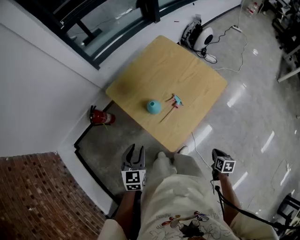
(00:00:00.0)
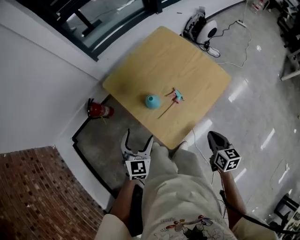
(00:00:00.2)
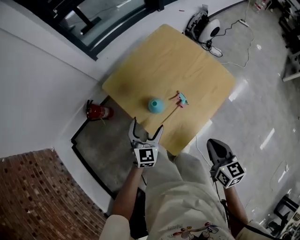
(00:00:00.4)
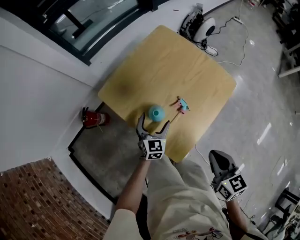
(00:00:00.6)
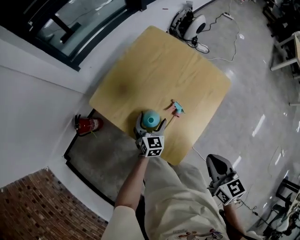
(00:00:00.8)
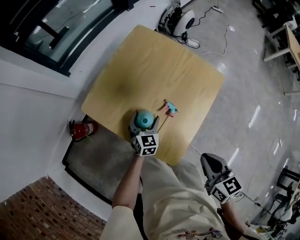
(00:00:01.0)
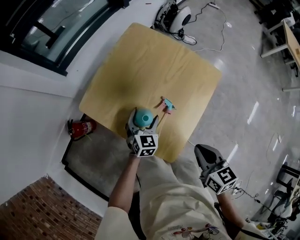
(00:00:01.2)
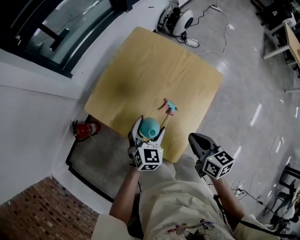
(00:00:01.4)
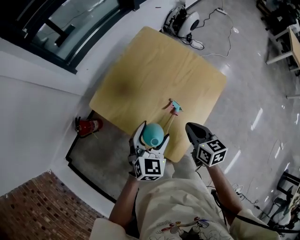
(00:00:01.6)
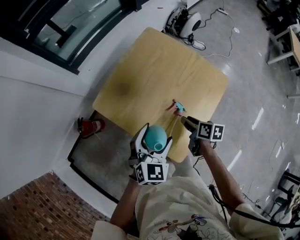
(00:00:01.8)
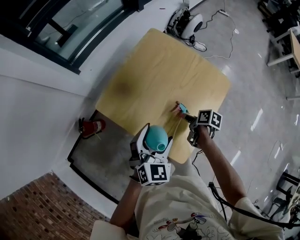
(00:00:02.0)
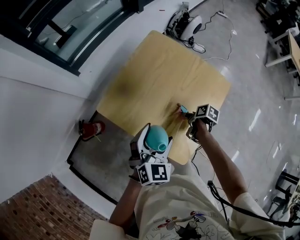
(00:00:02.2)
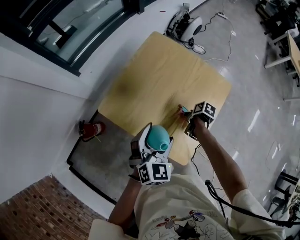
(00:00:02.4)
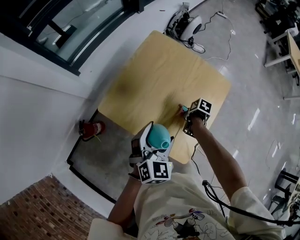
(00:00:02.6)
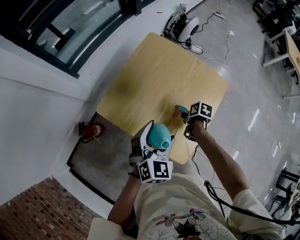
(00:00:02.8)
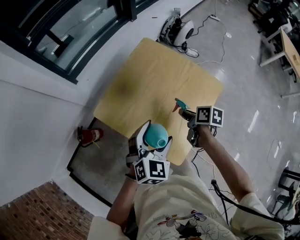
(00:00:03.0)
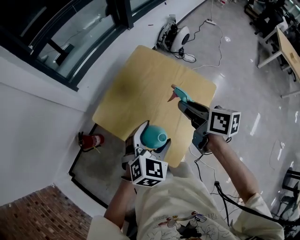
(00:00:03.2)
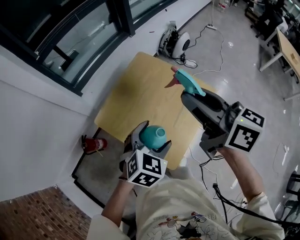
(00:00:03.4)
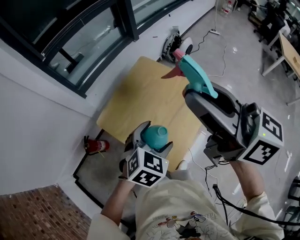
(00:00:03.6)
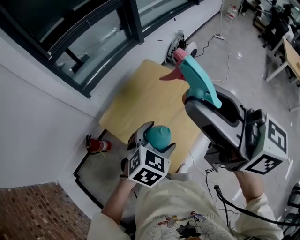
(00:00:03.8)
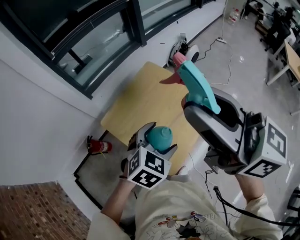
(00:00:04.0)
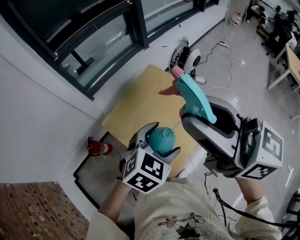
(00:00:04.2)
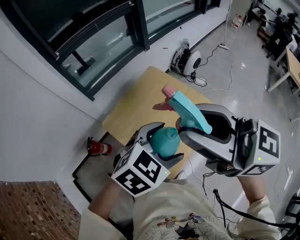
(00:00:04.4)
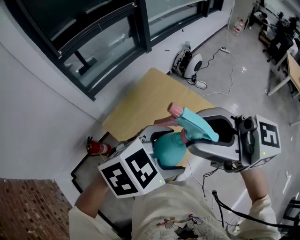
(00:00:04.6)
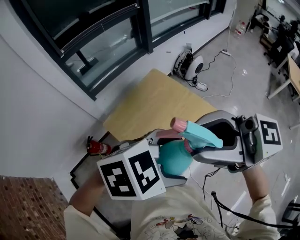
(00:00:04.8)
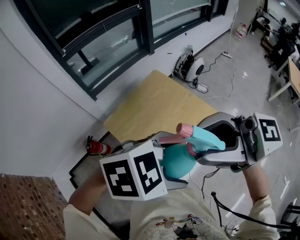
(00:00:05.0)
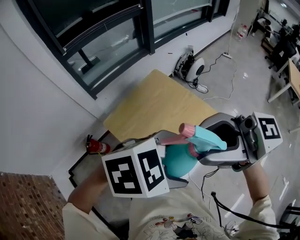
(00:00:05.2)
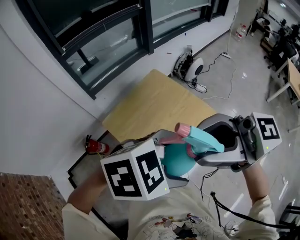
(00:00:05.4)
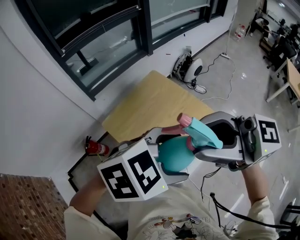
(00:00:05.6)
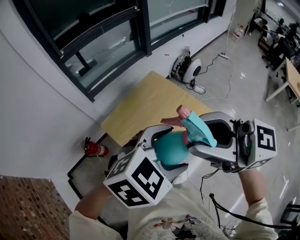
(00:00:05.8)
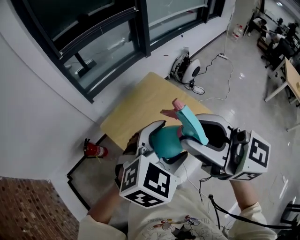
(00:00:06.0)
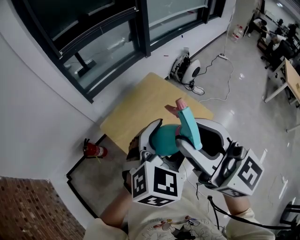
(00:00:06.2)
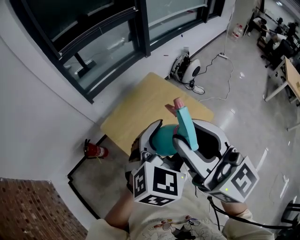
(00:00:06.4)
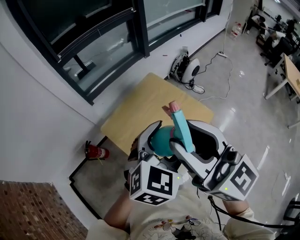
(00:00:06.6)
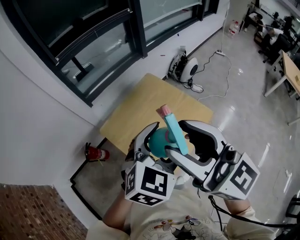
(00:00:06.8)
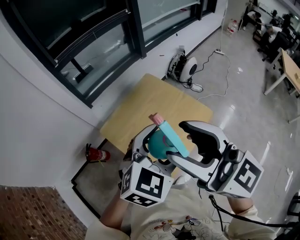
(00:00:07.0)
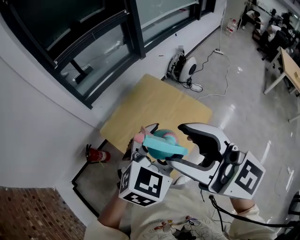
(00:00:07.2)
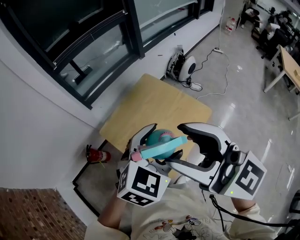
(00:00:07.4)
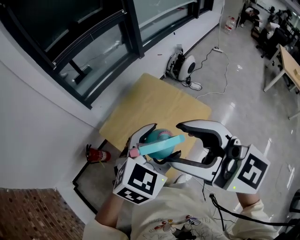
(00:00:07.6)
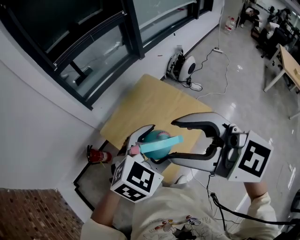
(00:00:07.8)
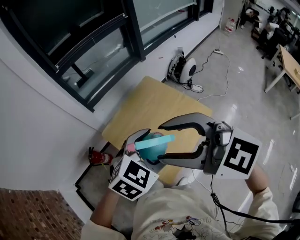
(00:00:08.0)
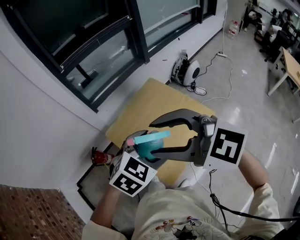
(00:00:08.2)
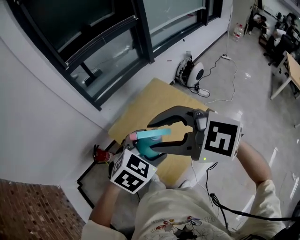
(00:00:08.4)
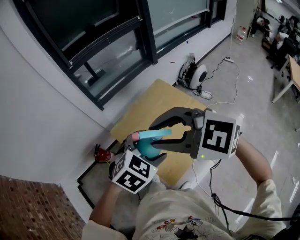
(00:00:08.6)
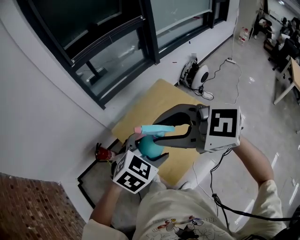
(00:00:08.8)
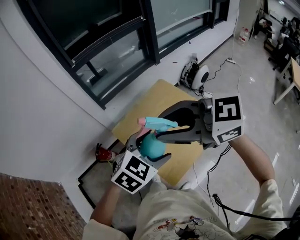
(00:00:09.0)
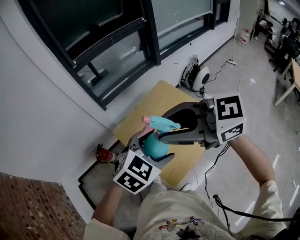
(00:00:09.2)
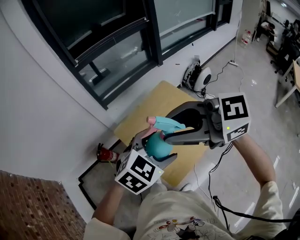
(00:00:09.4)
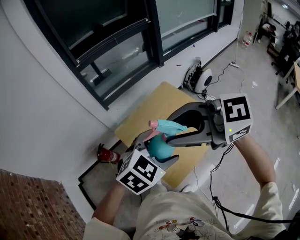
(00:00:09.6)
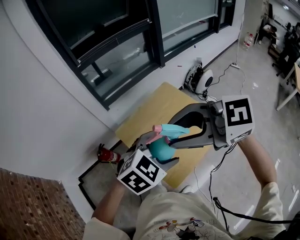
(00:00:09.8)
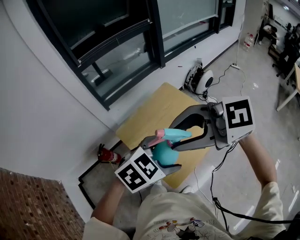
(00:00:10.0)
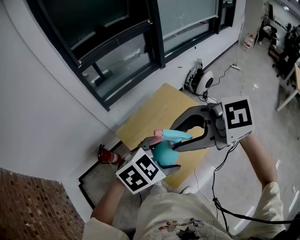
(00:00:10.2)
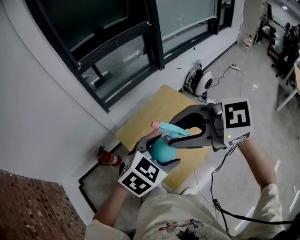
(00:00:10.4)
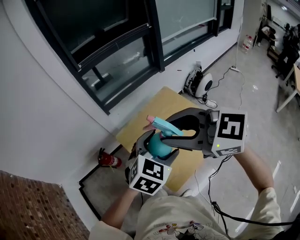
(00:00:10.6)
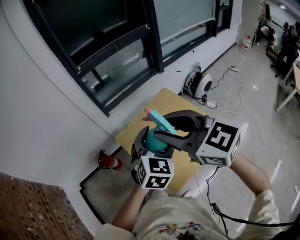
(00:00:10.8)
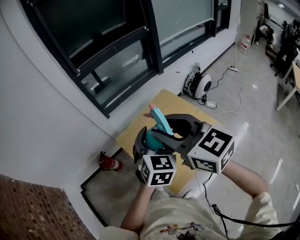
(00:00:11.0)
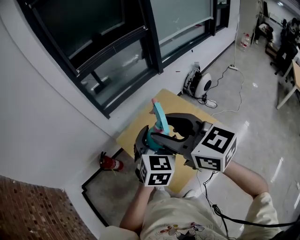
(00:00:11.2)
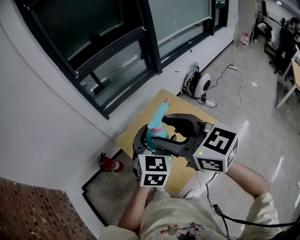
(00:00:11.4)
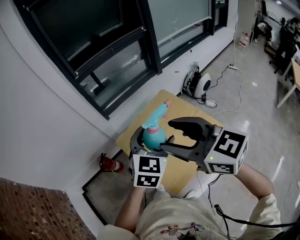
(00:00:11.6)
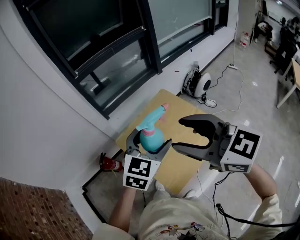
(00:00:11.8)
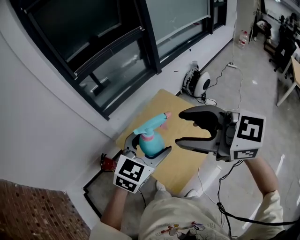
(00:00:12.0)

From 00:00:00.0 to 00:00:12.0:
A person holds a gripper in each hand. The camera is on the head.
From 00:00:00.0 to 00:00:01.6: The right gripper goes some 35 cm forward and to the left, and changes its angle by about 20 degrees. Meanwhile the left gripper shifts about 20 cm forward and to the right, turns by some 30 degrees, and opens its fingers.
From 00:00:01.6 to 00:00:03.0: The right gripper reaches roughly 15 cm downward, then returns, rotates roughly 30 degrees, and opens, while the left gripper moves upward, approximately 5 cm.
From 00:00:03.0 to 00:00:04.4: The left gripper goes approximately 25 cm upward and to the right, and swivels approximately 20 degrees. The right gripper is displaced upward by some 50 cm, and angles its fingers upward, by roughly 60 degrees.
From 00:00:06.0 to 00:00:07.6: The right gripper opens its fingers.
From 00:00:07.6 to 00:00:09.0: The left gripper ends up some 5 cm from where it was. The right gripper changes place by roughly 5 cm, swivels about 40 degrees, and closes.
From 00:00:09.0 to 00:00:10.4: There are only small adjustments of the grippers.
From 00:00:10.4 to 00:00:12.0: The right gripper shifts by about 5 cm, rotates roughly 30 degrees, and opens its fingers. The left gripper moves about 5 cm.

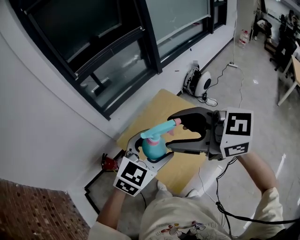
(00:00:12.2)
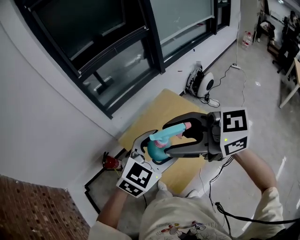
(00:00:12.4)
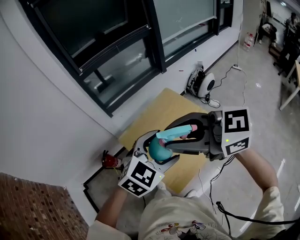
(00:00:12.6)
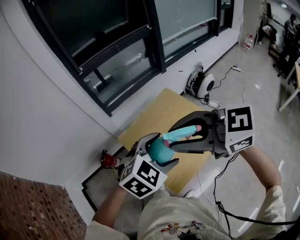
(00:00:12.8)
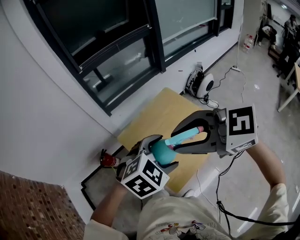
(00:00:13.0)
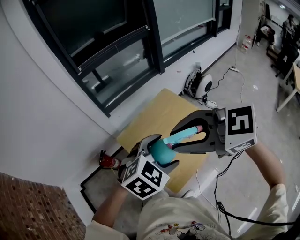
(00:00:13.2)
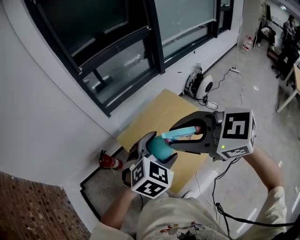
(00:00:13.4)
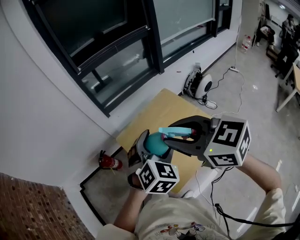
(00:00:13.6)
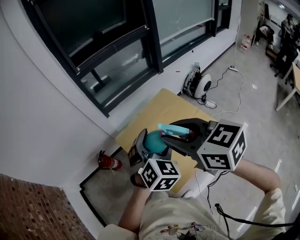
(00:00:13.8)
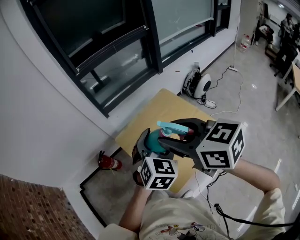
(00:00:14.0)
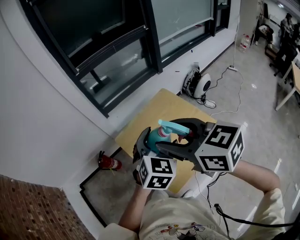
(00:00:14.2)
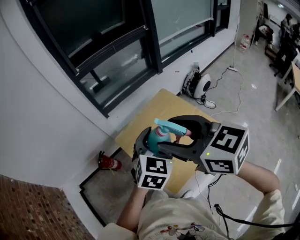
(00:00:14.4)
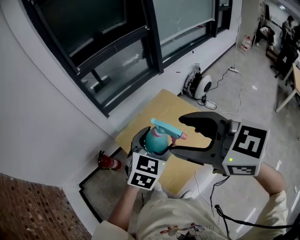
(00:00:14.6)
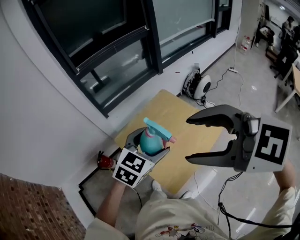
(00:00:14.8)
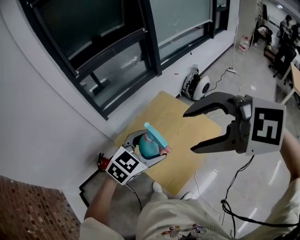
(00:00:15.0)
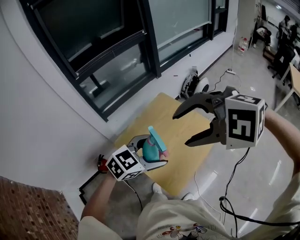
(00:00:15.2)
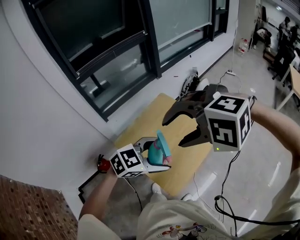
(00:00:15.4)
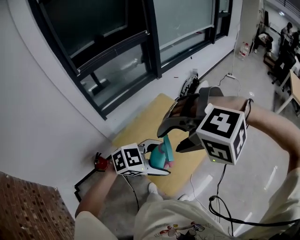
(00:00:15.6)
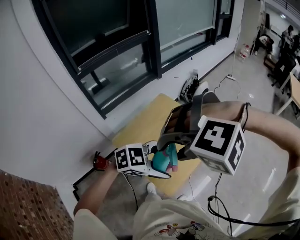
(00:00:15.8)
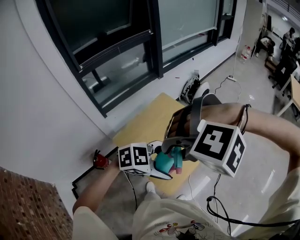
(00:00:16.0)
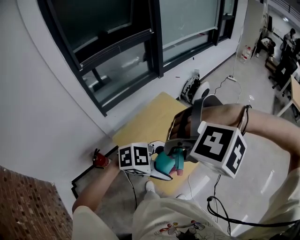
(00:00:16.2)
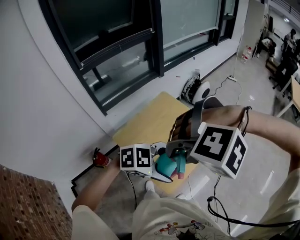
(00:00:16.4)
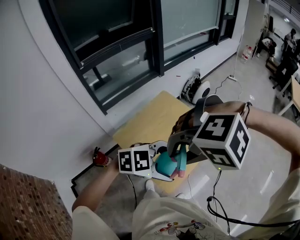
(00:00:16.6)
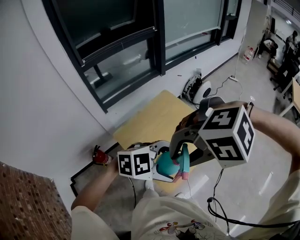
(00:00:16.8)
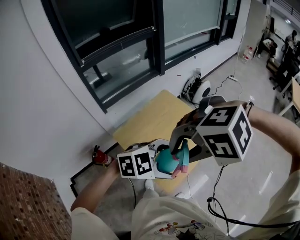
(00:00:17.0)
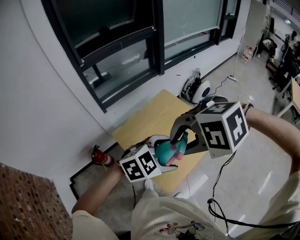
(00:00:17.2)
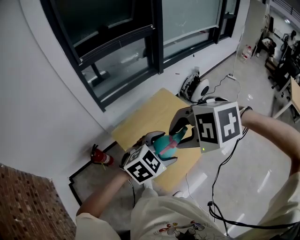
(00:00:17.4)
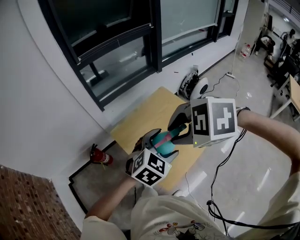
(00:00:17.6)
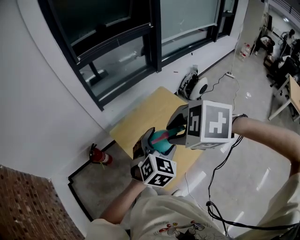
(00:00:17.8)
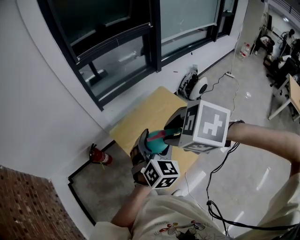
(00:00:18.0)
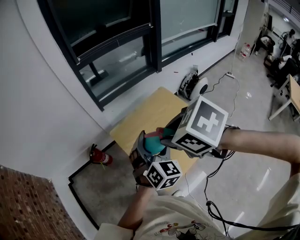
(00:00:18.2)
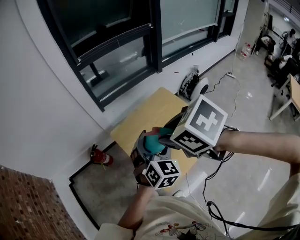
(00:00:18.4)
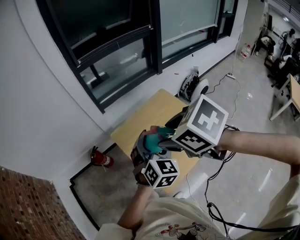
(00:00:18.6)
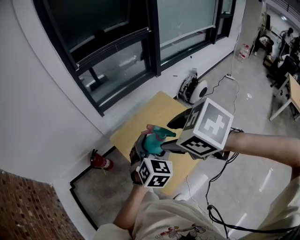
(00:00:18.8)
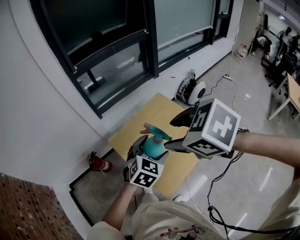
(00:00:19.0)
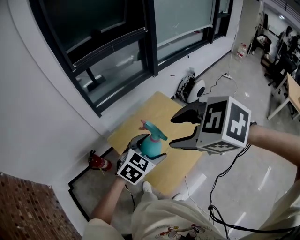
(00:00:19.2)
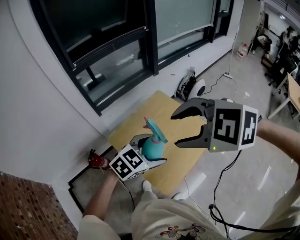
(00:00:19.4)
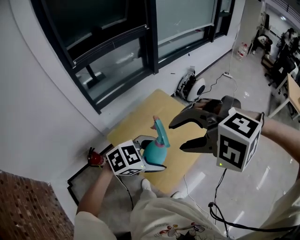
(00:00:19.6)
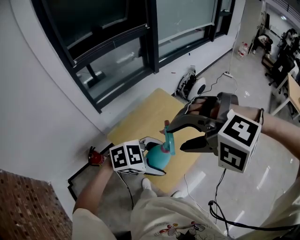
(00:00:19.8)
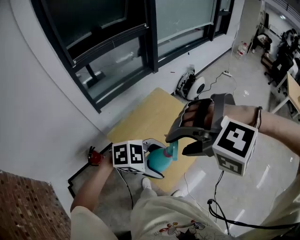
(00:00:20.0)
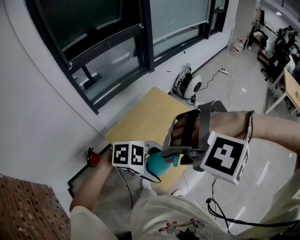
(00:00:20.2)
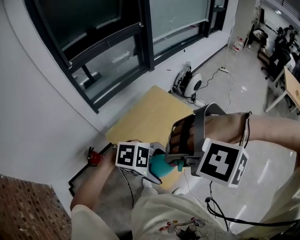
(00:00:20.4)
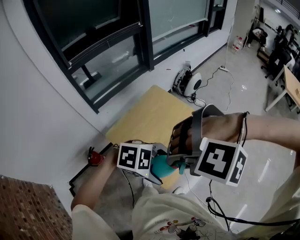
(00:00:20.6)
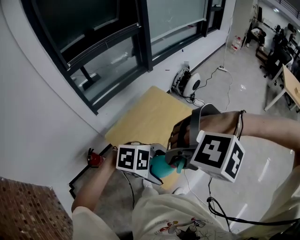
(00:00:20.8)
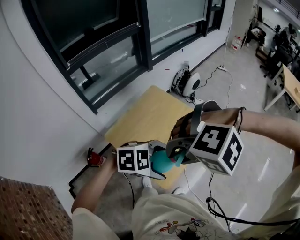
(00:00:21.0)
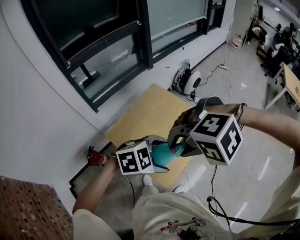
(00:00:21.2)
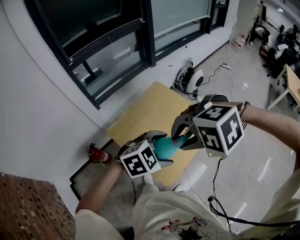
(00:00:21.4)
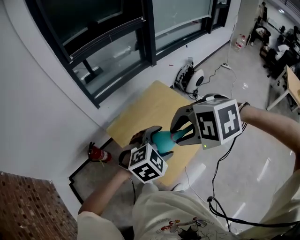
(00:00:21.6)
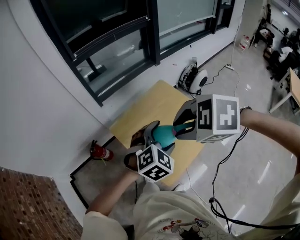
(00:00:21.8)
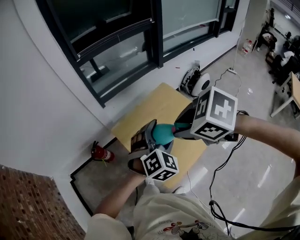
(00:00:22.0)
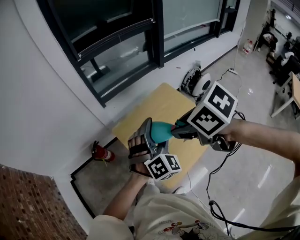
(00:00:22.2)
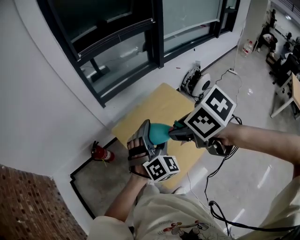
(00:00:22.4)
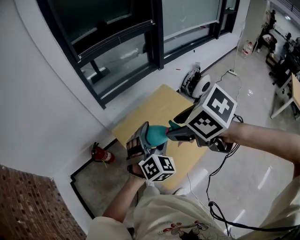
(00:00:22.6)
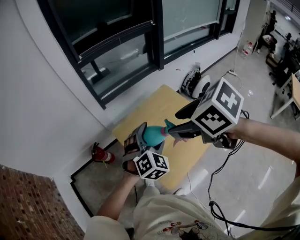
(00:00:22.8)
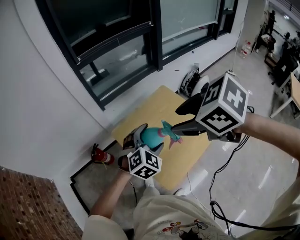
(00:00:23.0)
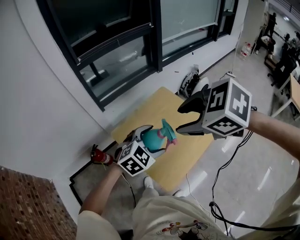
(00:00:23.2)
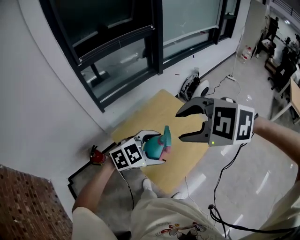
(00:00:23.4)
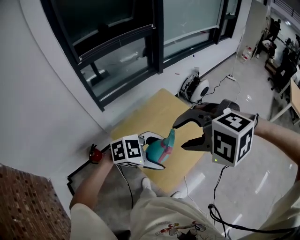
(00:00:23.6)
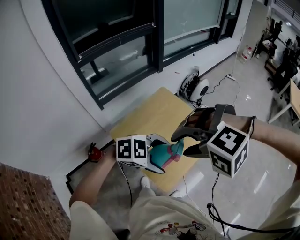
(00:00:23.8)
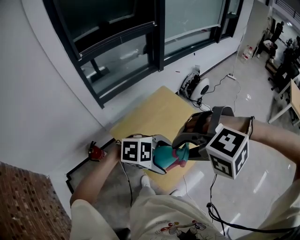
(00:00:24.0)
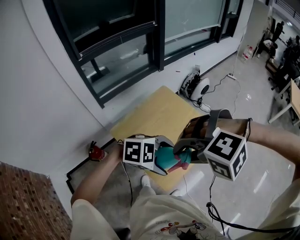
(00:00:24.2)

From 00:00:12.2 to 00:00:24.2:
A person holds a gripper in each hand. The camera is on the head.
From 00:00:12.2 to 00:00:13.8: The left gripper moves some 5 cm, and turns by approximately 30 degrees. Meanwhile the right gripper changes place by roughly 5 cm, turns by about 20 degrees, and closes up.
From 00:00:13.8 to 00:00:15.2: The left gripper shifts by approximately 5 cm, and rotates some 50 degrees. The right gripper rotates around the line of its fingers by about 60 degrees, counterclockwise from behind, and opens.
From 00:00:15.2 to 00:00:16.6: The right gripper ends up approximately 10 cm from where it was, swivels some 40 degrees, and closes; the left gripper ends up roughly 10 cm from where it was, and changes its angle by approximately 30 degrees.
From 00:00:16.6 to 00:00:18.2: The left gripper shifts by approximately 15 cm, and turns by about 90 degrees; the right gripper ends up approximately 10 cm from where it was, and rolls clockwise, seen from behind, by roughly 80 degrees.
From 00:00:18.2 to 00:00:19.8: The left gripper shifts by roughly 10 cm, and turns by roughly 80 degrees. The right gripper changes place by about 5 cm, rolls counterclockwise, seen from behind, by roughly 70 degrees, and opens up.
From 00:00:19.8 to 00:00:21.2: The right gripper moves downward, roughly 5 cm, turns by roughly 20 degrees, and closes its fingers.
From 00:00:21.2 to 00:00:22.6: The right gripper changes place by roughly 10 cm, and rolls clockwise, seen from behind, by about 80 degrees; the left gripper ends up some 15 cm from where it was, and rotates approximately 70 degrees.
From 00:00:22.6 to 00:00:24.2: The right gripper moves approximately 10 cm, and rolls counterclockwise, seen from behind, by some 80 degrees. Meanwhile the left gripper shifts by some 15 cm, and turns by about 80 degrees.
